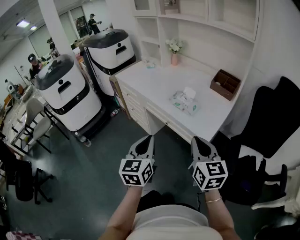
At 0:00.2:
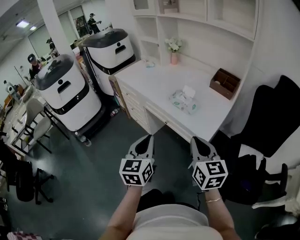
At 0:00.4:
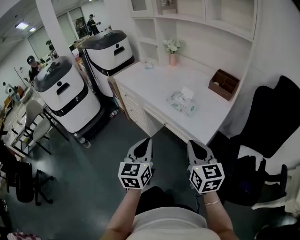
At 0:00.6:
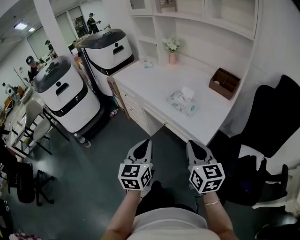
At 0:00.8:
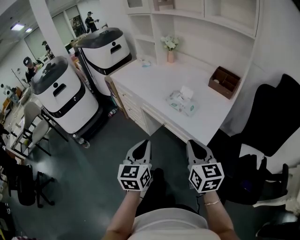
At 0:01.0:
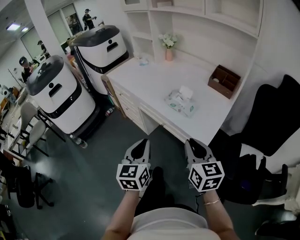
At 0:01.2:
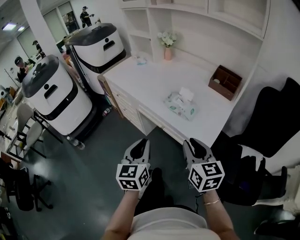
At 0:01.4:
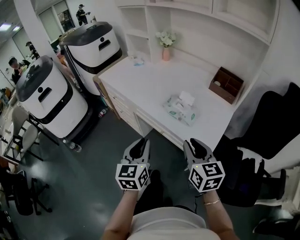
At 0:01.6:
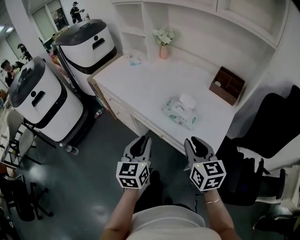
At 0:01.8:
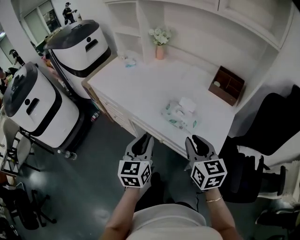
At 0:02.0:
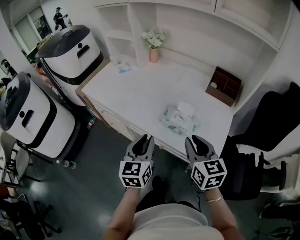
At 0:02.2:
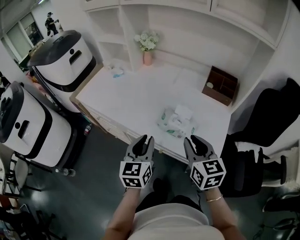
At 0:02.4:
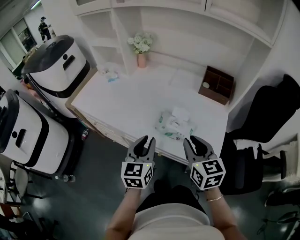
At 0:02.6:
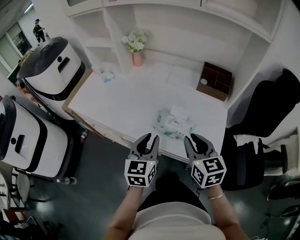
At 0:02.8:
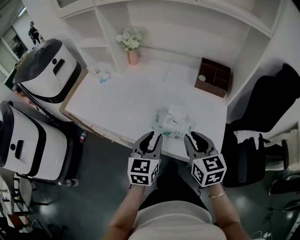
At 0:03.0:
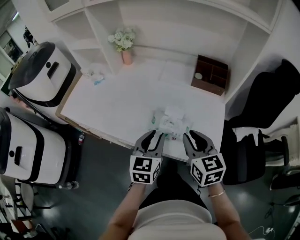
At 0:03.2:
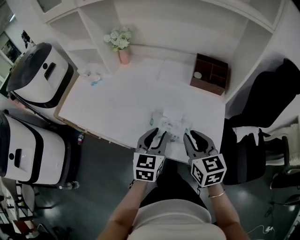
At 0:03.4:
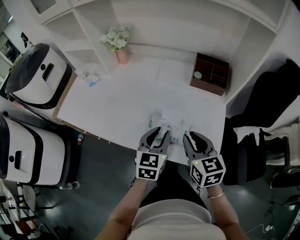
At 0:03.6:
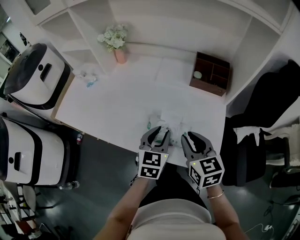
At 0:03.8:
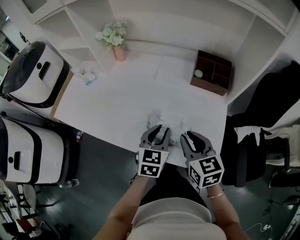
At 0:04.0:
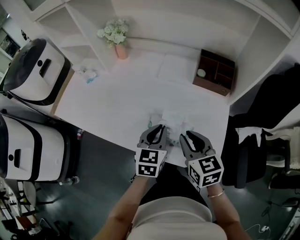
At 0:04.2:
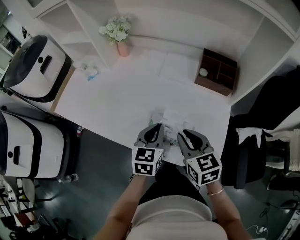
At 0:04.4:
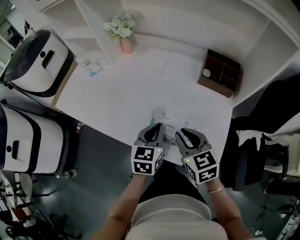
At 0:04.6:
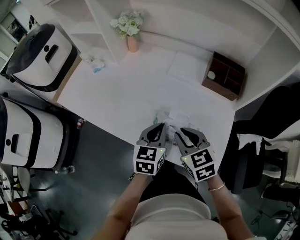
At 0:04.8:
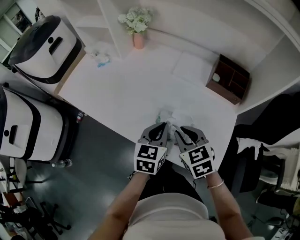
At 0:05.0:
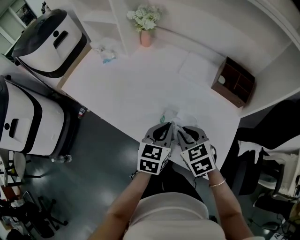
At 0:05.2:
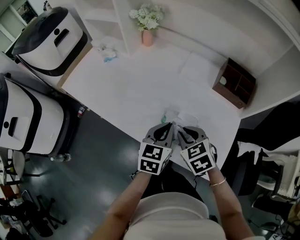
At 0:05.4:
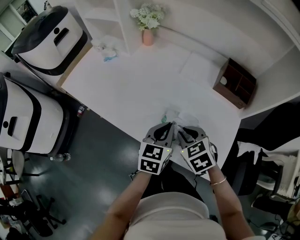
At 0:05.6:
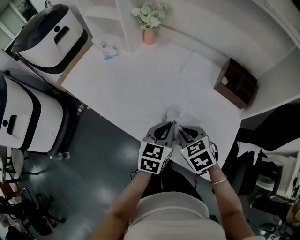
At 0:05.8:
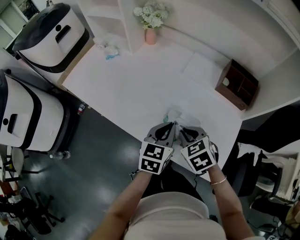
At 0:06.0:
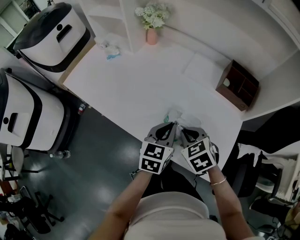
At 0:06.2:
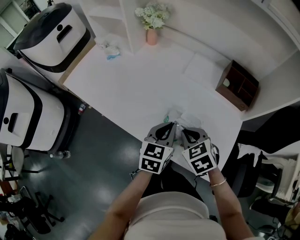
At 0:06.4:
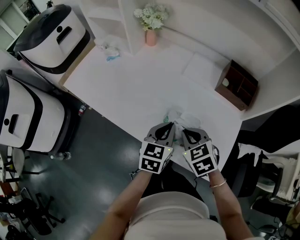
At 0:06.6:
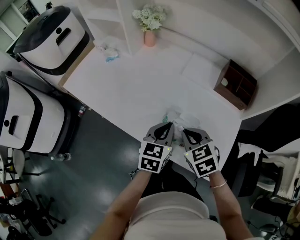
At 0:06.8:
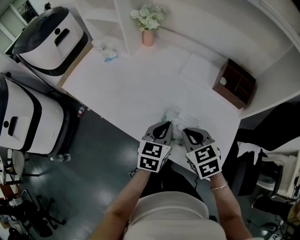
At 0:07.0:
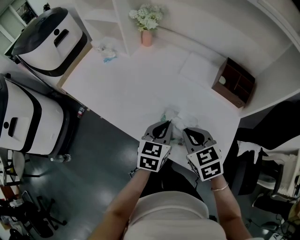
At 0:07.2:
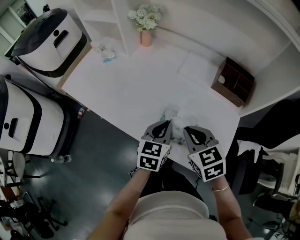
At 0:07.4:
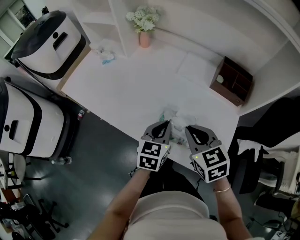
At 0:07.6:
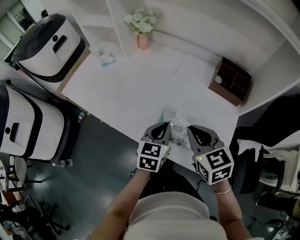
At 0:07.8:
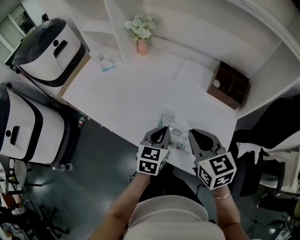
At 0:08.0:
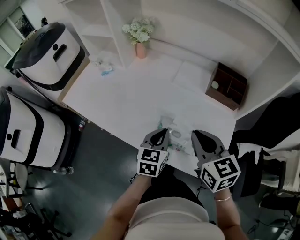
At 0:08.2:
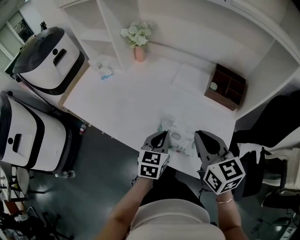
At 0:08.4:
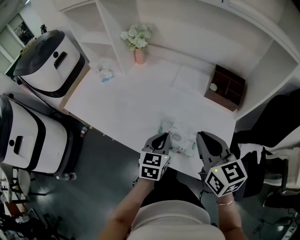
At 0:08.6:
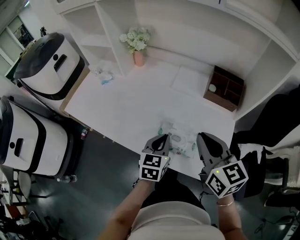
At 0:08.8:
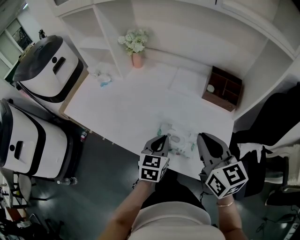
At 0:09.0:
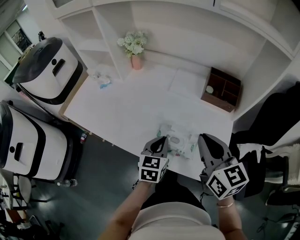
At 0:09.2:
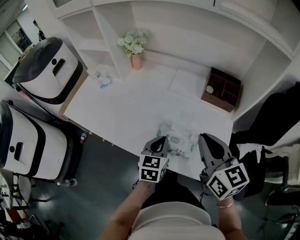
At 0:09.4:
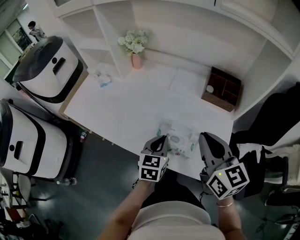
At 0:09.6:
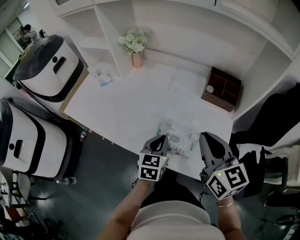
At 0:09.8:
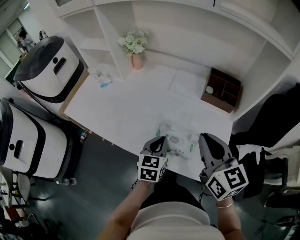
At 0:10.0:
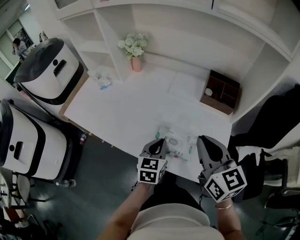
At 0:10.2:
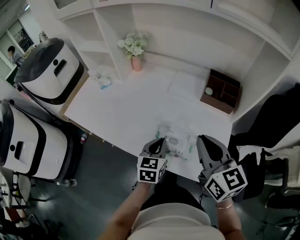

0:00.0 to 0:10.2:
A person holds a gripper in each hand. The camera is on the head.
0:00.0 to 0:01.4: Both grippers move forward, roughly 15 cm.
0:01.4 to 0:03.0: Both grippers travel together forward, roughly 20 cm. The left gripper turns by about 30 degrees.
0:03.0 to 0:04.4: The grippers both shift forward by roughly 5 cm. The left gripper closes.
0:04.4 to 0:05.8: The right gripper goes some 5 cm downward, and changes its angle by approximately 30 degrees.
0:05.8 to 0:07.2: The right gripper moves upward, about 5 cm.
0:07.2 to 0:08.8: The right gripper heads upward, covering roughly 10 cm, and swivels some 30 degrees.
0:08.8 to 0:10.2: The grippers stay close to where they were, moving slightly.

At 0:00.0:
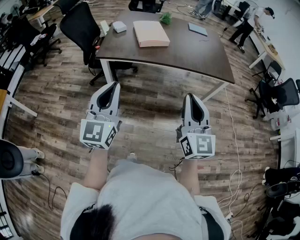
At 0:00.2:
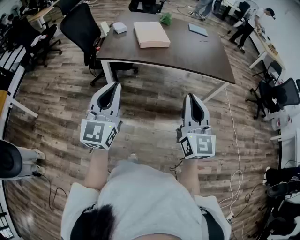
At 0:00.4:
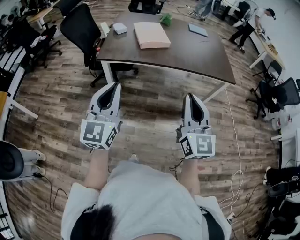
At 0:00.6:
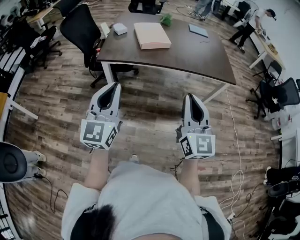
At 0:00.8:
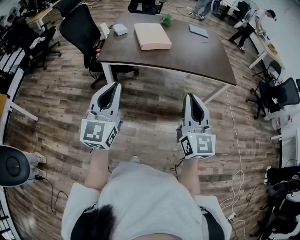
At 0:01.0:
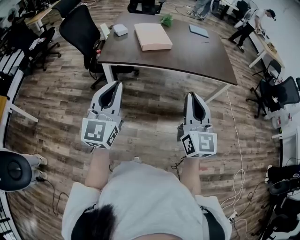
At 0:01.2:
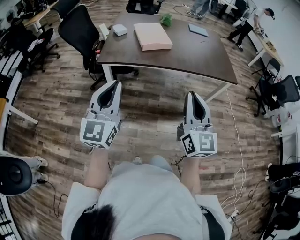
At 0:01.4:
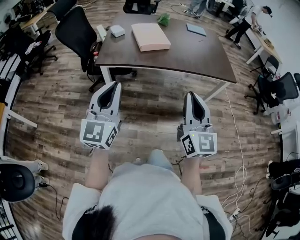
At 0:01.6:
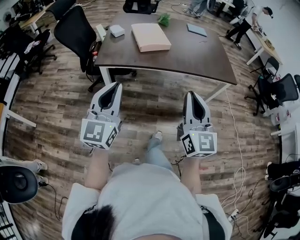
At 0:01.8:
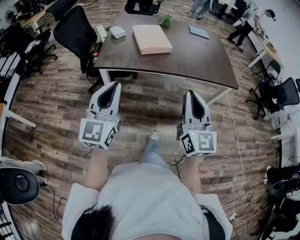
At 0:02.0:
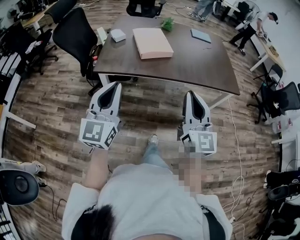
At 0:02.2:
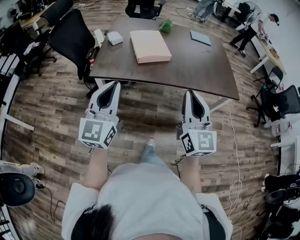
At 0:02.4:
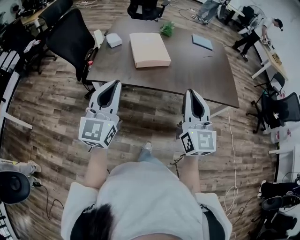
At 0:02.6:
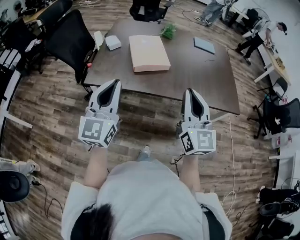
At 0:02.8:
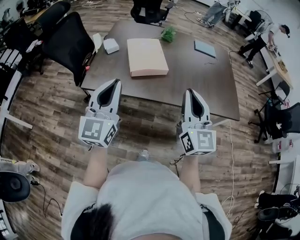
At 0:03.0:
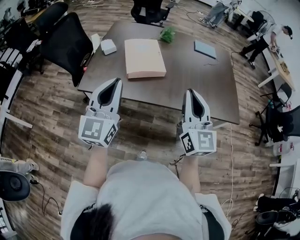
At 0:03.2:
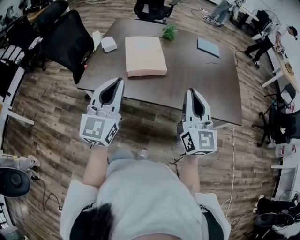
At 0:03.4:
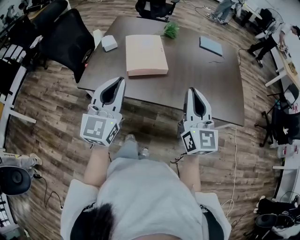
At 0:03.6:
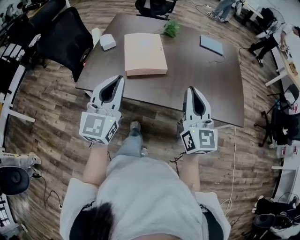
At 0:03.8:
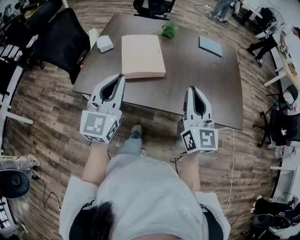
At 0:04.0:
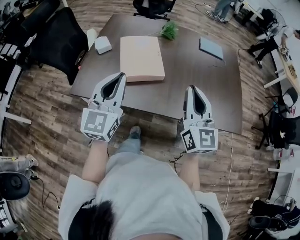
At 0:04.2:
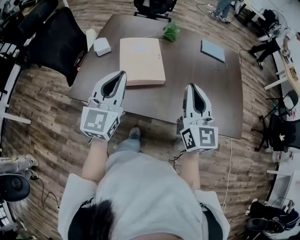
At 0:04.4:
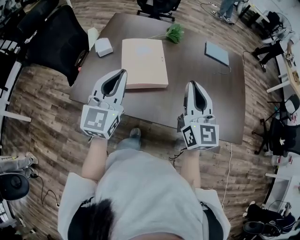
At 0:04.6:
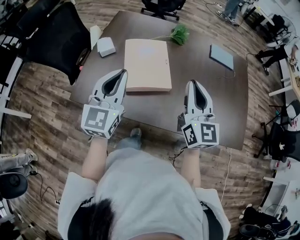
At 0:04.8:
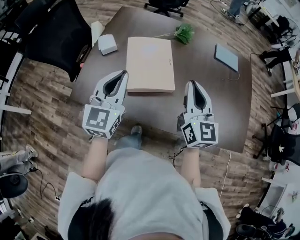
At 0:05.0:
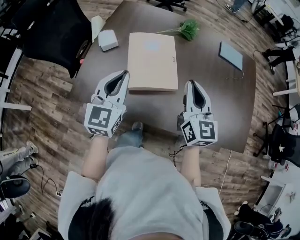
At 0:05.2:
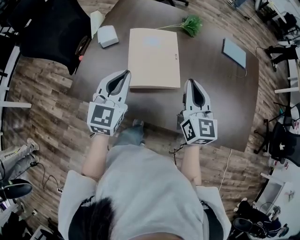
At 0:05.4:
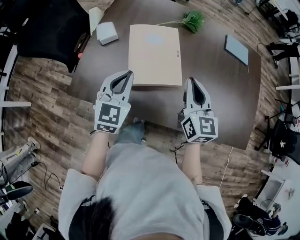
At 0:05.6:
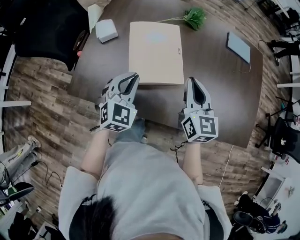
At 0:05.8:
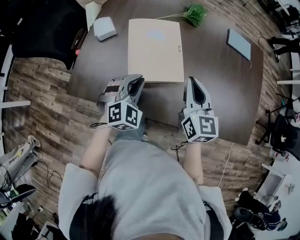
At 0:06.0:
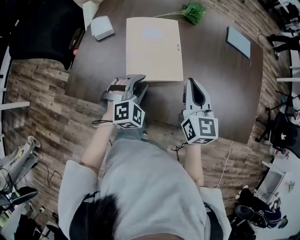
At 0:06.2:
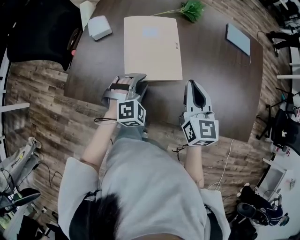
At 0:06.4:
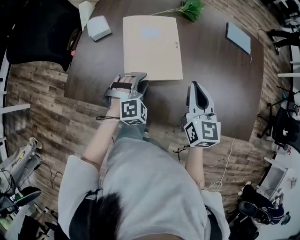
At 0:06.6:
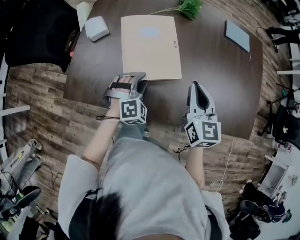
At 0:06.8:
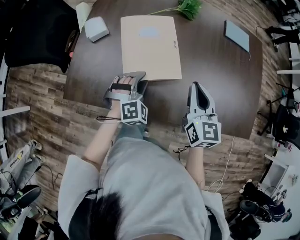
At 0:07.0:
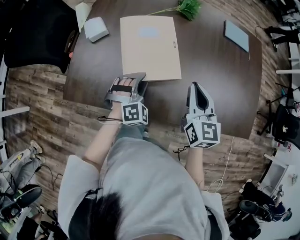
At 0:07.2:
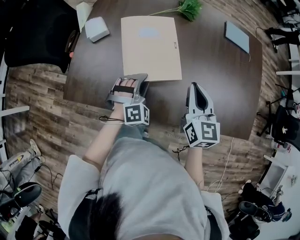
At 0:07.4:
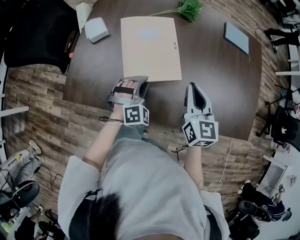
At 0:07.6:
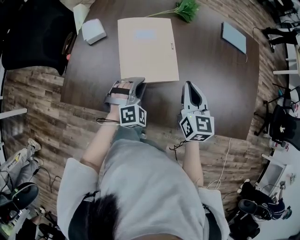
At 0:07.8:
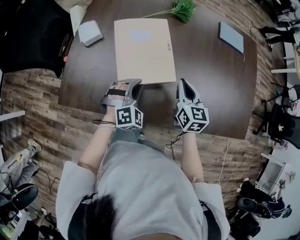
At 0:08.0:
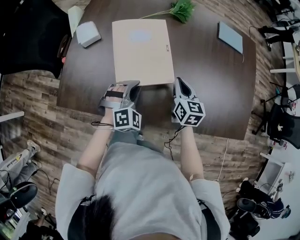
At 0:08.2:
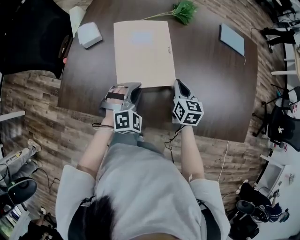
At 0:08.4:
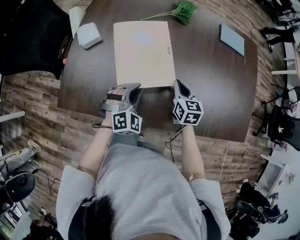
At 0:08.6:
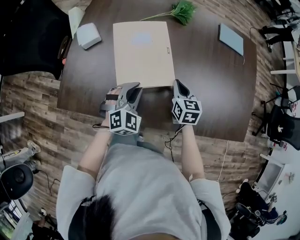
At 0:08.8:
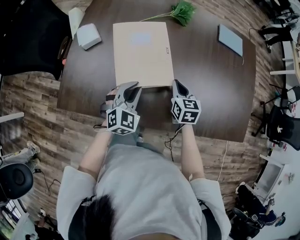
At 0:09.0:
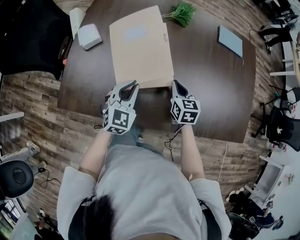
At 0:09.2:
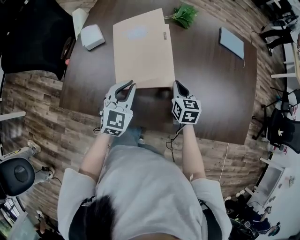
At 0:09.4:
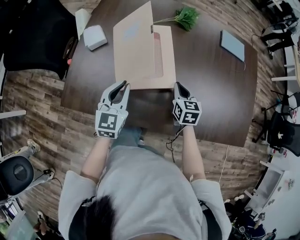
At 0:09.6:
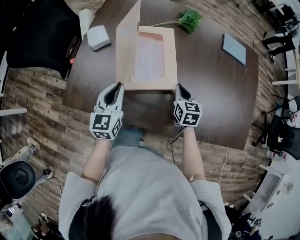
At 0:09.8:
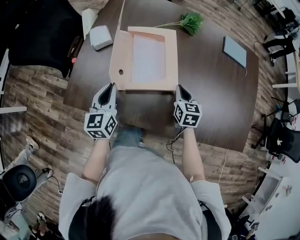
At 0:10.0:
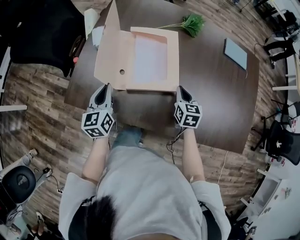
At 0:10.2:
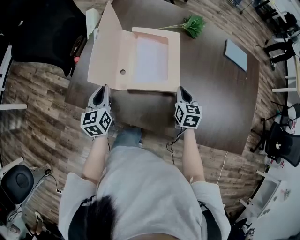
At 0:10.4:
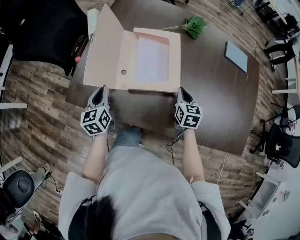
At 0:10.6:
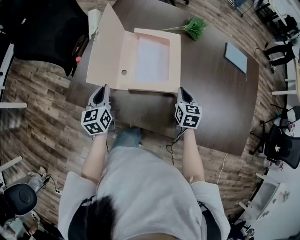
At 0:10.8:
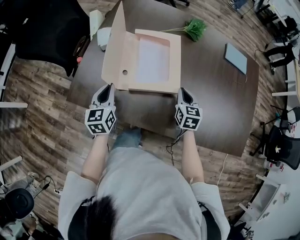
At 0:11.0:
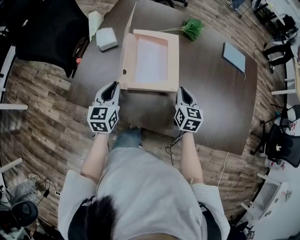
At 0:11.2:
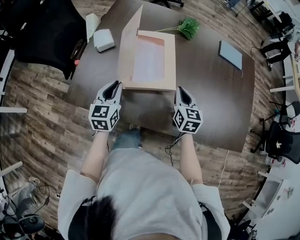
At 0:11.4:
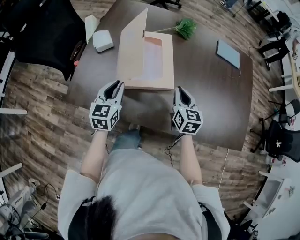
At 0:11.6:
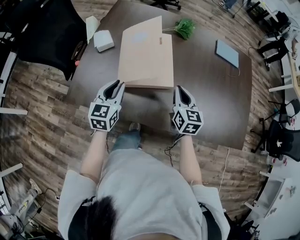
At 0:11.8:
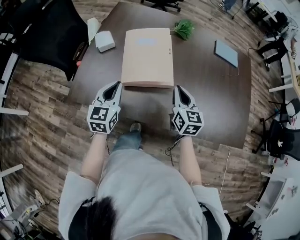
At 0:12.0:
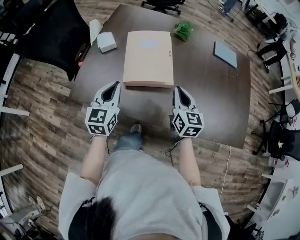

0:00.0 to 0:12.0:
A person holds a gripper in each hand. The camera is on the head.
0:00.0 to 0:01.6: Both grippers travel together forward, roughly 5 cm.
0:01.6 to 0:03.0: Both grippers travel together forward, roughly 30 cm.
0:03.0 to 0:04.4: The two grippers go roughly 20 cm forward.
0:04.4 to 0:06.0: The left gripper moves downward, roughly 25 cm, and tips its fingers downward by about 40 degrees, while the right gripper travels downward and forward by some 15 cm, and rotates about 20 degrees.
0:06.0 to 0:07.6: The right gripper moves about 5 cm.
0:07.6 to 0:09.0: The left gripper turns by approximately 40 degrees. Meanwhile the right gripper moves downward, roughly 10 cm.
0:09.0 to 0:10.4: The left gripper moves to the left, roughly 20 cm, and rotates around the line of its fingers by approximately 40 degrees, counterclockwise from behind.
0:10.4 to 0:12.0: The left gripper moves upward and to the right, approximately 15 cm, and changes its angle by about 30 degrees, while the right gripper moves upward and backward, roughly 15 cm, and rotates about 20 degrees.

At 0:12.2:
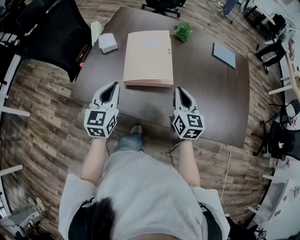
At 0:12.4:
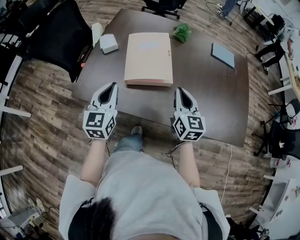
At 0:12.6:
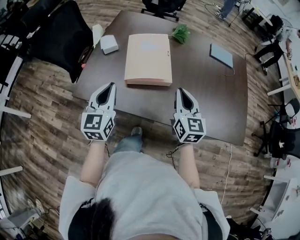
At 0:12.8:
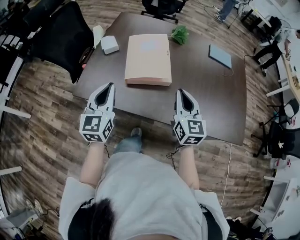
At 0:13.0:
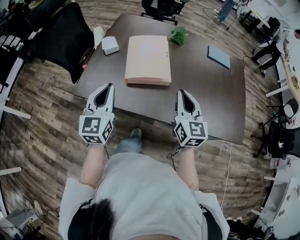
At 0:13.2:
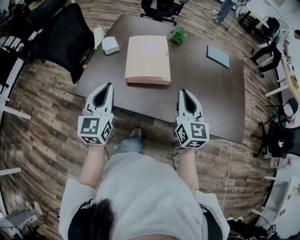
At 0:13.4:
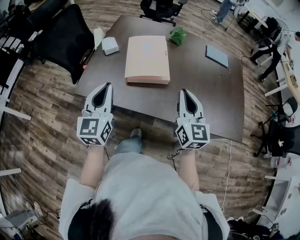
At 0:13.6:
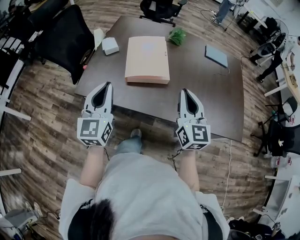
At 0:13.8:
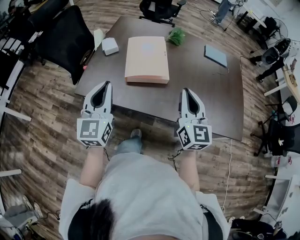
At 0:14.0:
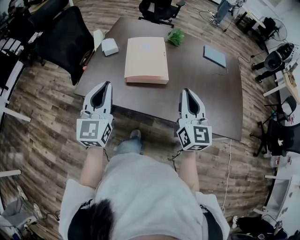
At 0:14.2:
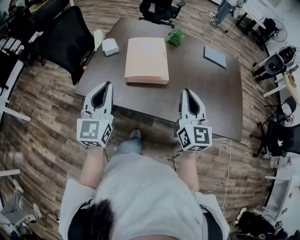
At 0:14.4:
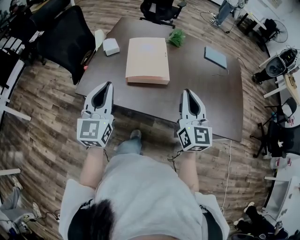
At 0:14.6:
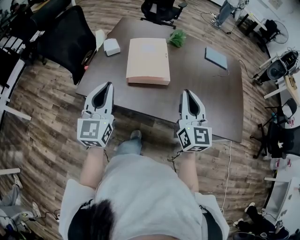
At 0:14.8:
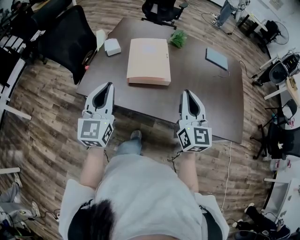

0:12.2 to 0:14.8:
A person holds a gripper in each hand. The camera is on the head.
0:12.2 to 0:13.4: The two grippers go roughly 15 cm backward and upward.
0:13.4 to 0:14.8: The grippers move only a little.
